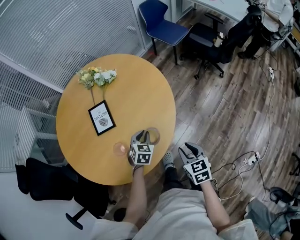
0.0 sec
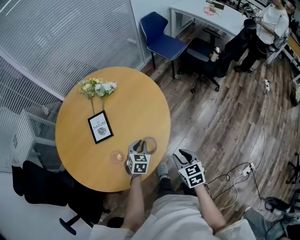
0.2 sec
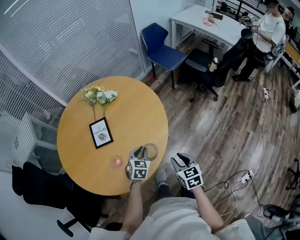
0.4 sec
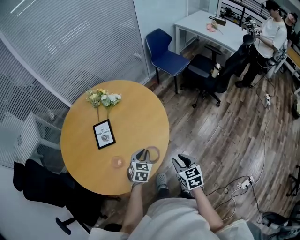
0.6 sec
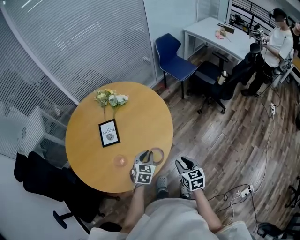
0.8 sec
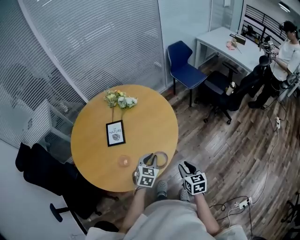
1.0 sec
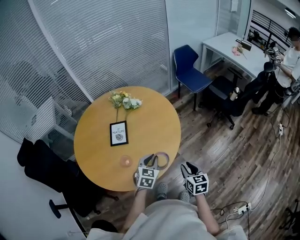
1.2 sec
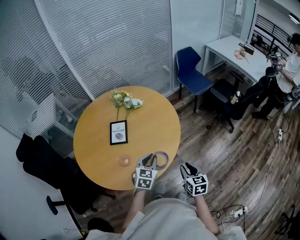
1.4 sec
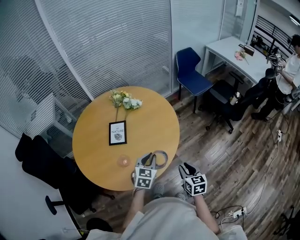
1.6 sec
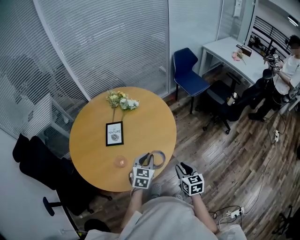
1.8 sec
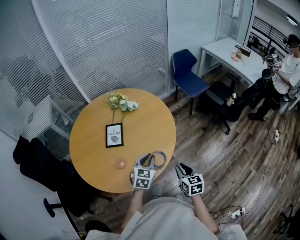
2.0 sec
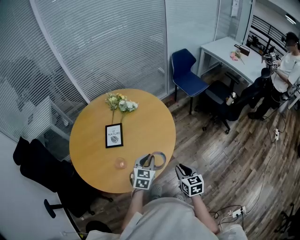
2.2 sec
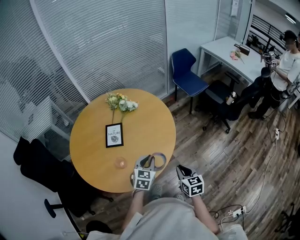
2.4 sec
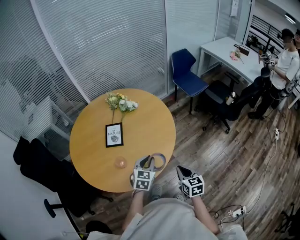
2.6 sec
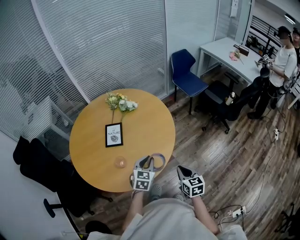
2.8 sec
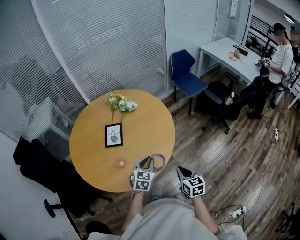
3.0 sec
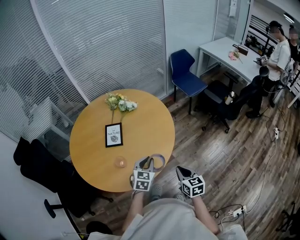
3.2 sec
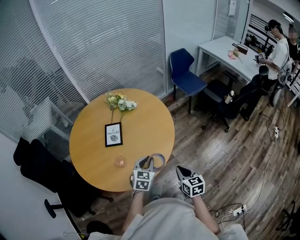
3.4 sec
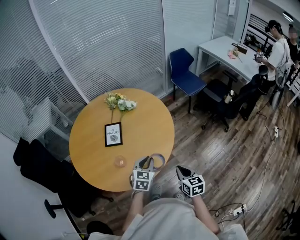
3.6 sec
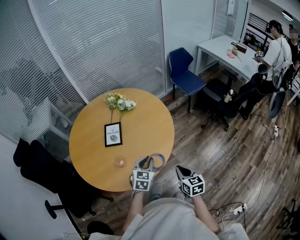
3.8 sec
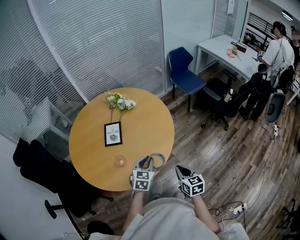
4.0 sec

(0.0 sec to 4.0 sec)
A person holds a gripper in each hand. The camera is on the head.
0.0 sec - 1.4 sec: The left gripper is displaced upward by about 15 cm. Meanwhile the right gripper is displaced upward and to the right by about 10 cm.
1.4 sec - 2.6 sec: The right gripper closes its fingers.
2.6 sec - 4.0 sec: The grippers make only small movements.

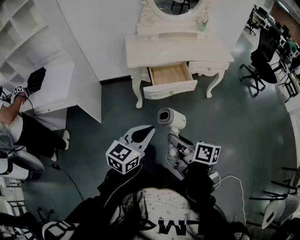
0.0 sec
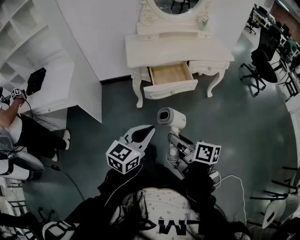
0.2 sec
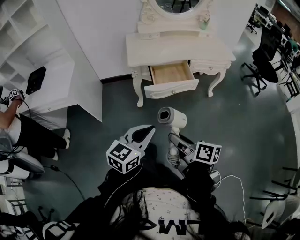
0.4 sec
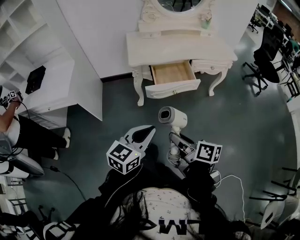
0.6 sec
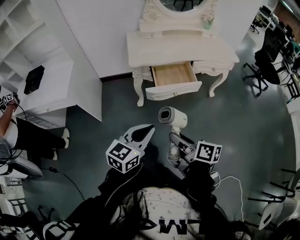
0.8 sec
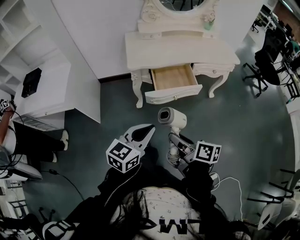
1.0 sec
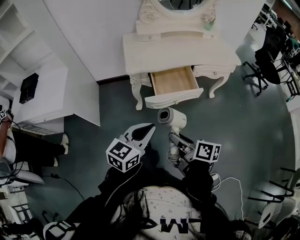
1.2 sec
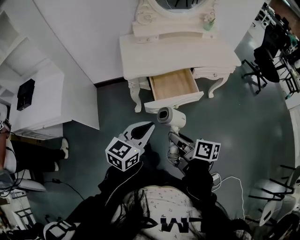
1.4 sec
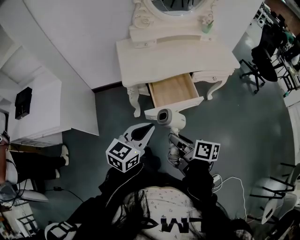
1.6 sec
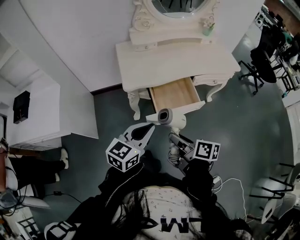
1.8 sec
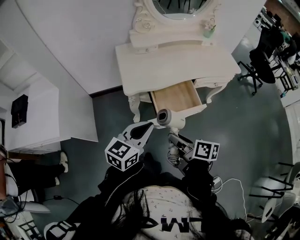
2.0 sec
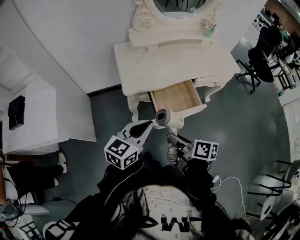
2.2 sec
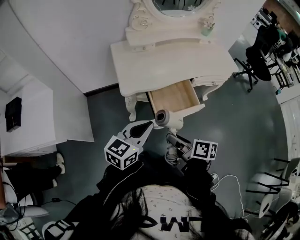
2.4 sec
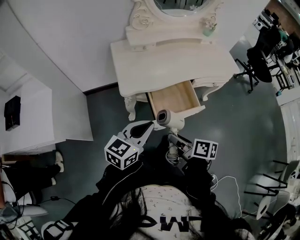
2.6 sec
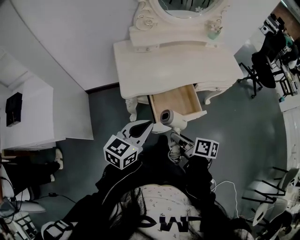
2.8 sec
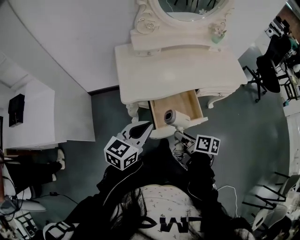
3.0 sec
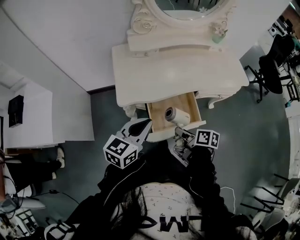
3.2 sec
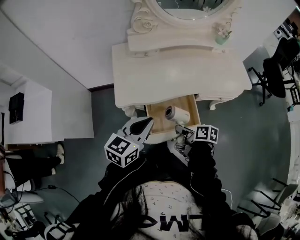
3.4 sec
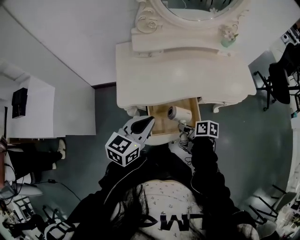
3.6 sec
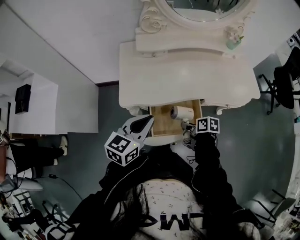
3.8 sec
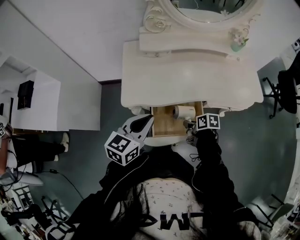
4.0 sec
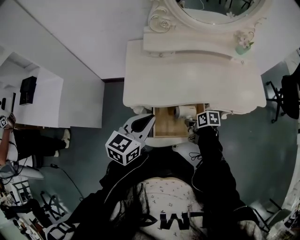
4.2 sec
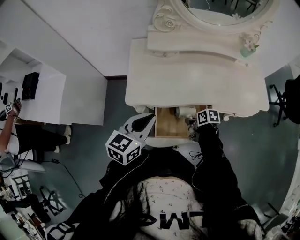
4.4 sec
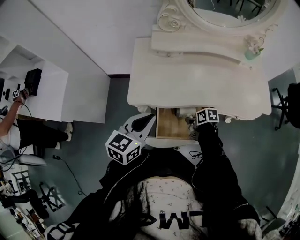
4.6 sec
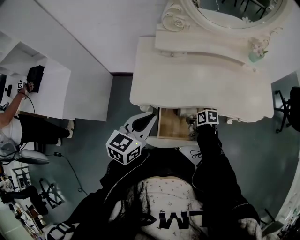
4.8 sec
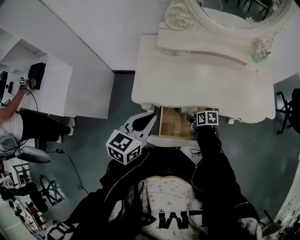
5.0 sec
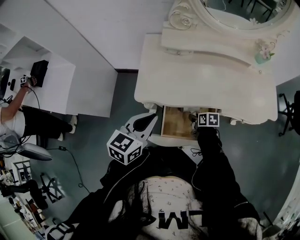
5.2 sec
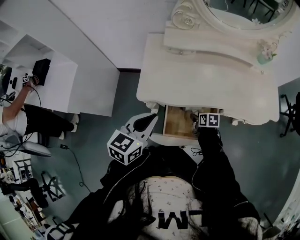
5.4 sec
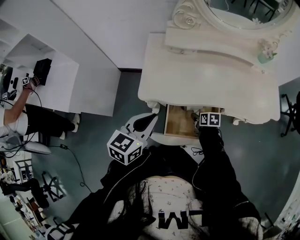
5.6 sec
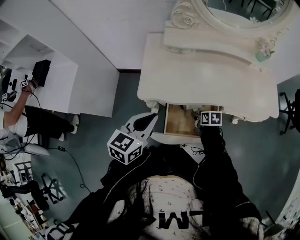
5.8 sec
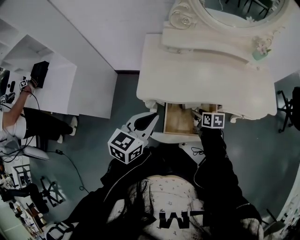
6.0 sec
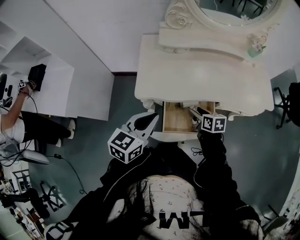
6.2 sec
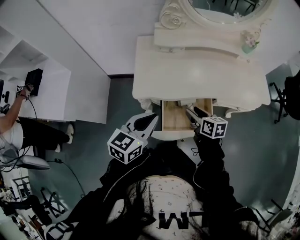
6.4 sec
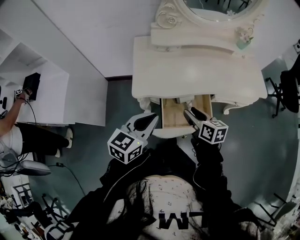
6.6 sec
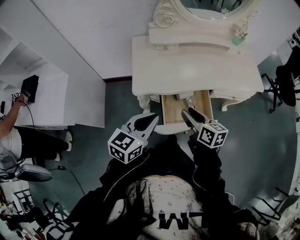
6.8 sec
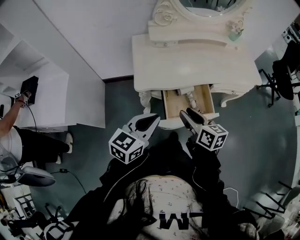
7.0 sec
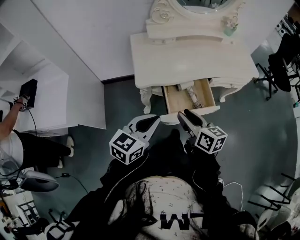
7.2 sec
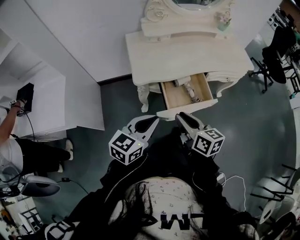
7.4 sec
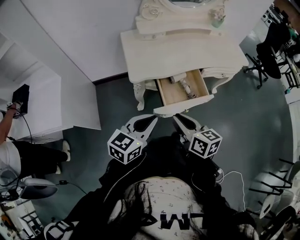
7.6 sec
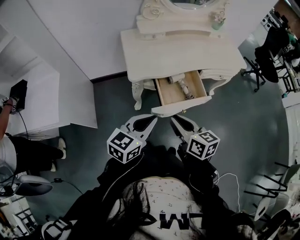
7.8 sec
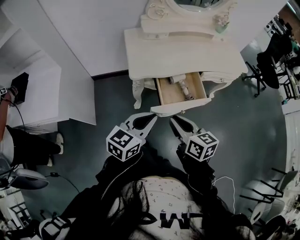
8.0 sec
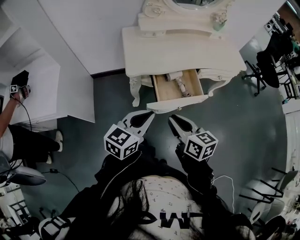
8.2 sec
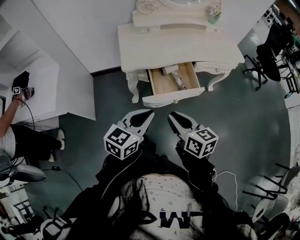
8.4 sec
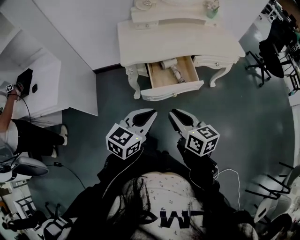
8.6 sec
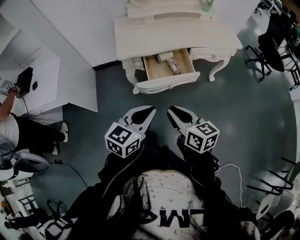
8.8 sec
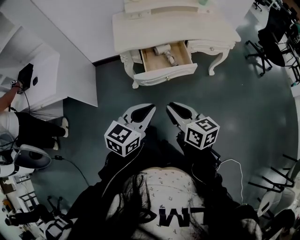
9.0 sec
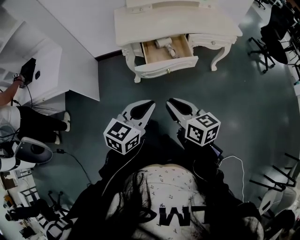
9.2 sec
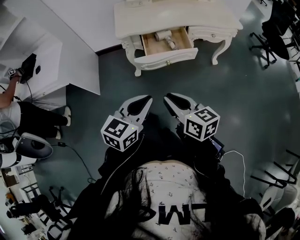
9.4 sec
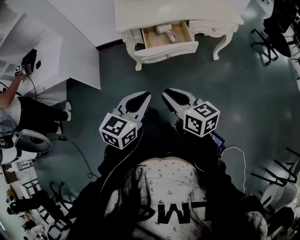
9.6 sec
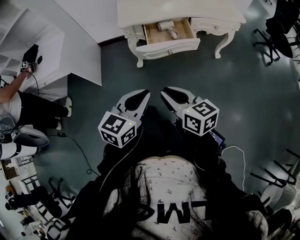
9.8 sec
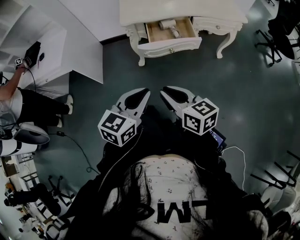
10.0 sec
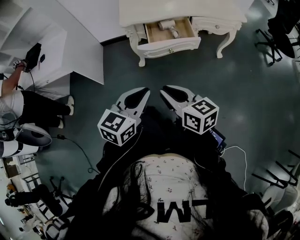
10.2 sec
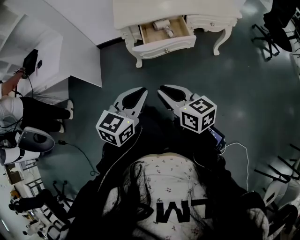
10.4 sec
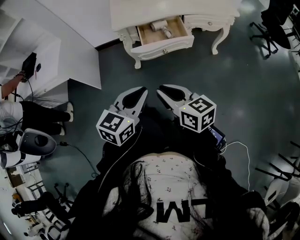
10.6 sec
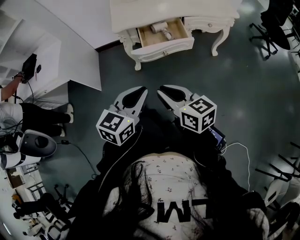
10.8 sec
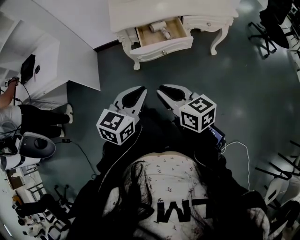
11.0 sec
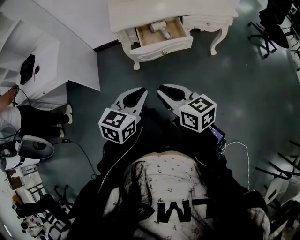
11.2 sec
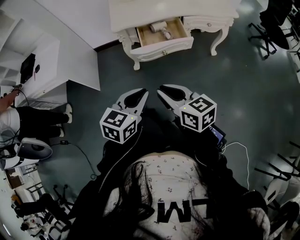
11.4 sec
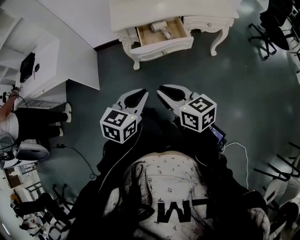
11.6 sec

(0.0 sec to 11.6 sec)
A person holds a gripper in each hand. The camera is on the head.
0.0 sec - 1.4 sec: The grippers both shift forward by roughly 15 cm.
1.4 sec - 2.8 sec: Both grippers move forward, some 15 cm.
2.8 sec - 4.4 sec: The right gripper ends up about 30 cm from where it was, and swivels some 40 degrees; the left gripper changes place by about 15 cm.
4.4 sec - 5.8 sec: The right gripper moves approximately 5 cm.
5.8 sec - 7.2 sec: The left gripper is displaced backward by roughly 10 cm, and changes its angle by some 20 degrees, while the right gripper is displaced upward, backward and to the left by roughly 35 cm, and tilts its fingers about 40 degrees upward.
7.2 sec - 8.8 sec: The two grippers go some 20 cm backward and to the right. The right gripper closes.
8.8 sec - 10.2 sec: Both grippers travel together backward, some 10 cm.
10.2 sec - 11.6 sec: The grippers make only small movements.

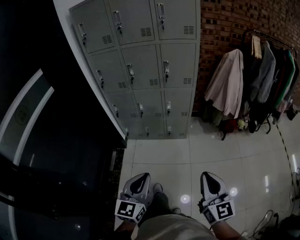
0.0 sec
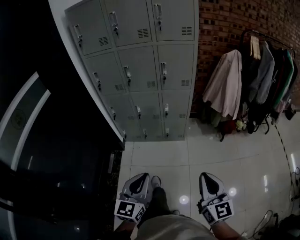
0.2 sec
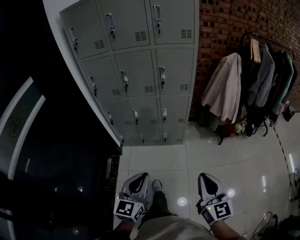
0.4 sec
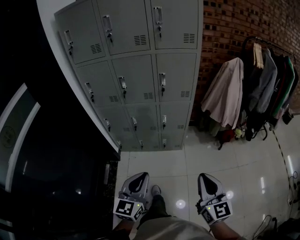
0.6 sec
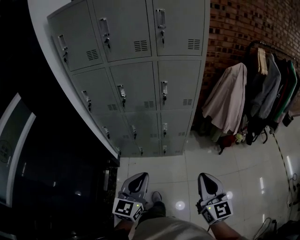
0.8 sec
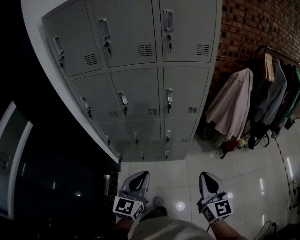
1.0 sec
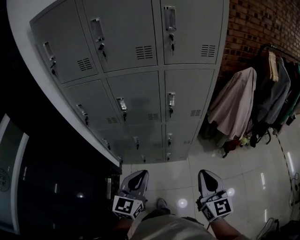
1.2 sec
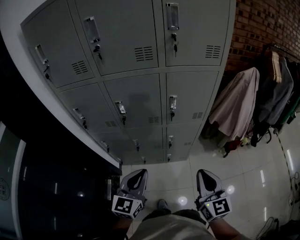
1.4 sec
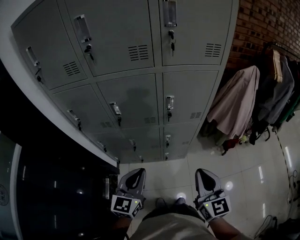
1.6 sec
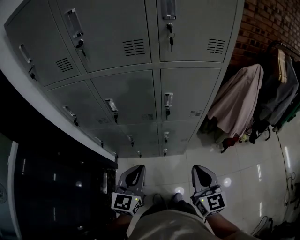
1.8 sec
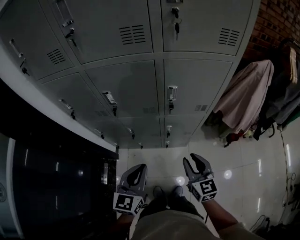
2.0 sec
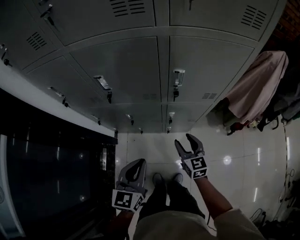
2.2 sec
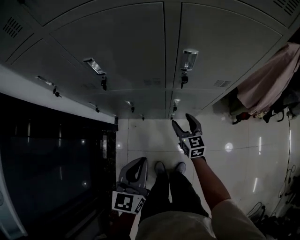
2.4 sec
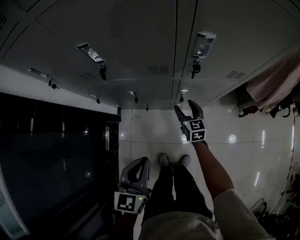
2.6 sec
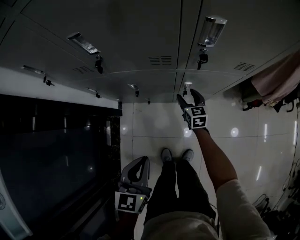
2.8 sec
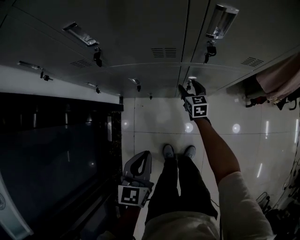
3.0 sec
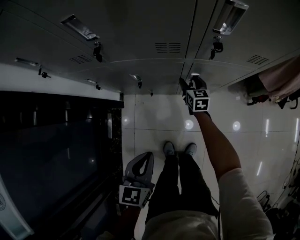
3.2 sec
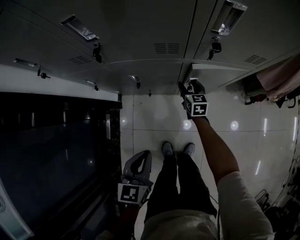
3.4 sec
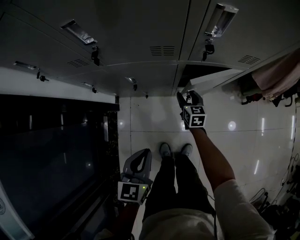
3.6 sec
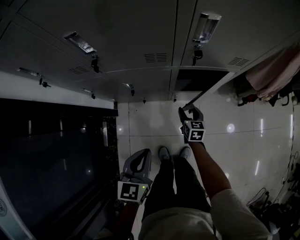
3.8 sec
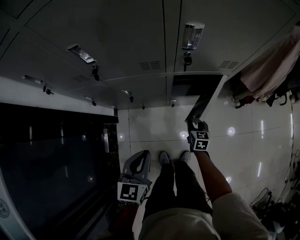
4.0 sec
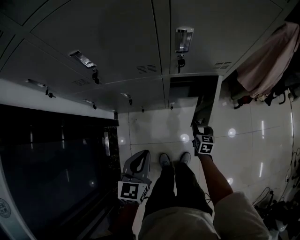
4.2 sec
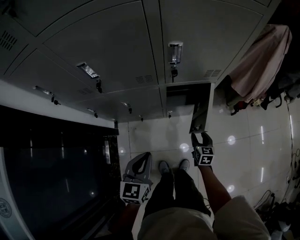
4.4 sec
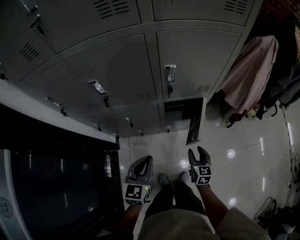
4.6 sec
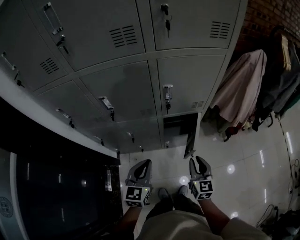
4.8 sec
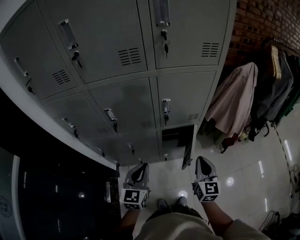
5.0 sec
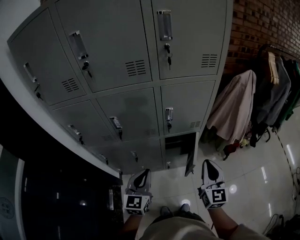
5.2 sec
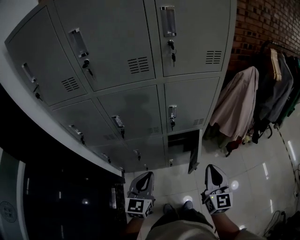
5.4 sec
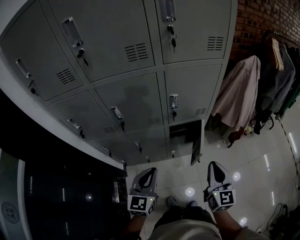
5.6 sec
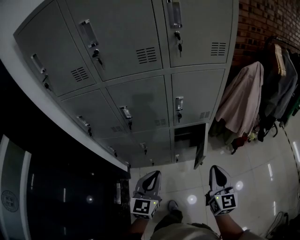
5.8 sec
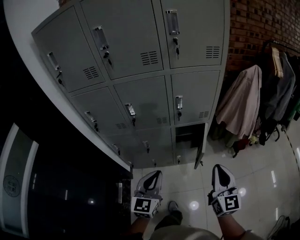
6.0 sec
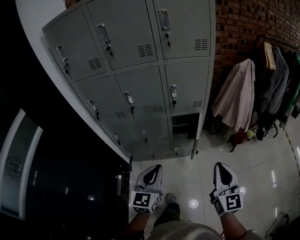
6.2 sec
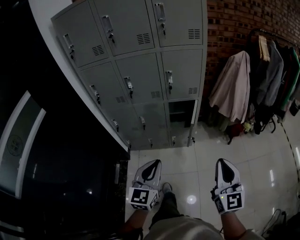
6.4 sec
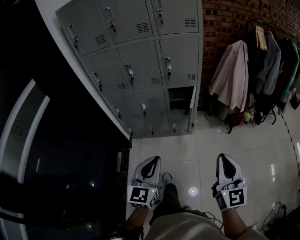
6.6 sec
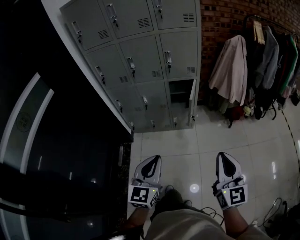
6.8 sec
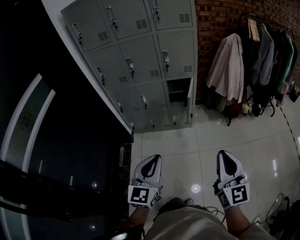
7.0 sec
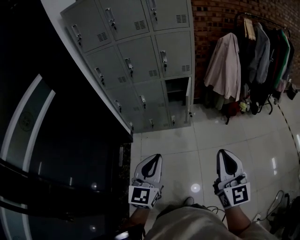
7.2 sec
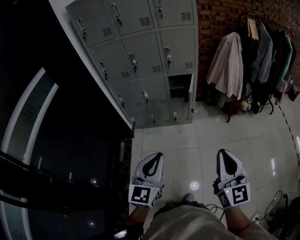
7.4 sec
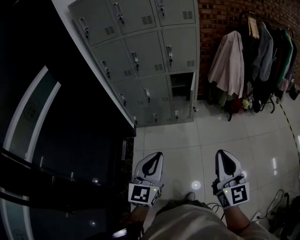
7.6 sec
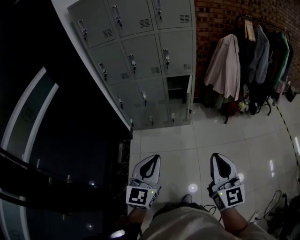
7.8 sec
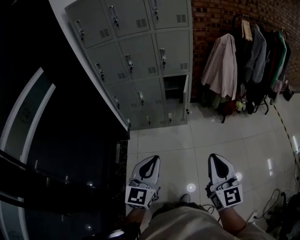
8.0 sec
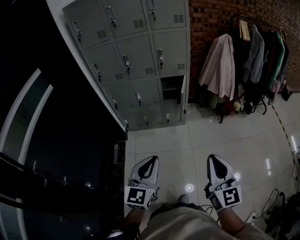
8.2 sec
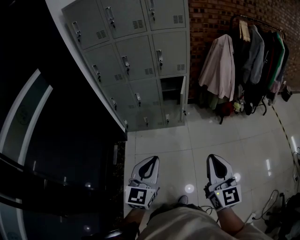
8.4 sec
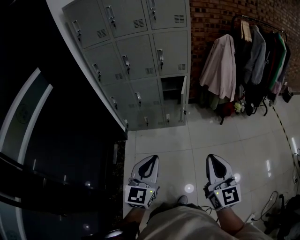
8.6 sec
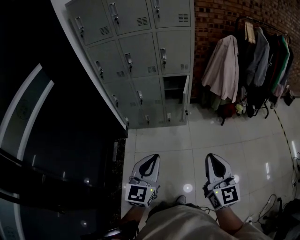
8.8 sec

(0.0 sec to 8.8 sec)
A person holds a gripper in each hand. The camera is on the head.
0.0 sec - 1.4 sec: The pair of grippers is taken forward, some 40 cm.
1.4 sec - 3.0 sec: The right gripper shifts some 80 cm downward and forward, rotates about 30 degrees, and opens; the left gripper goes roughly 40 cm downward, and turns by some 30 degrees.
3.0 sec - 4.4 sec: The right gripper shifts approximately 25 cm backward and to the right, while the left gripper shifts some 15 cm upward and to the right.
4.4 sec - 5.8 sec: The right gripper travels upward and backward by about 60 cm, tips its fingers upward by some 30 degrees, and closes. The left gripper is displaced upward by approximately 25 cm.
5.8 sec - 7.4 sec: The two grippers travel together, backward, about 50 cm.
7.4 sec - 8.8 sec: The grippers stay close to where they were, moving slightly.
